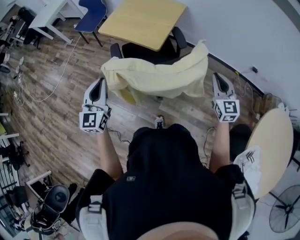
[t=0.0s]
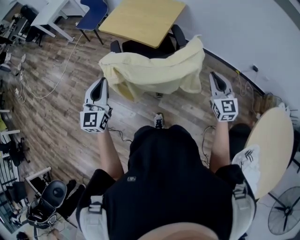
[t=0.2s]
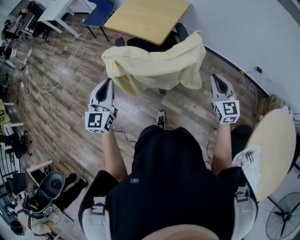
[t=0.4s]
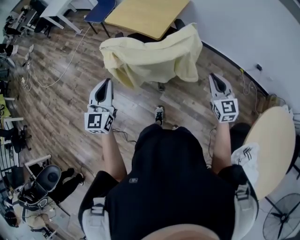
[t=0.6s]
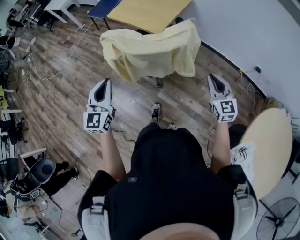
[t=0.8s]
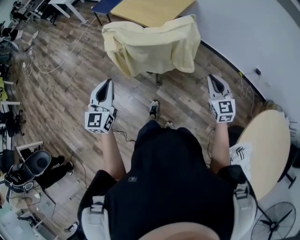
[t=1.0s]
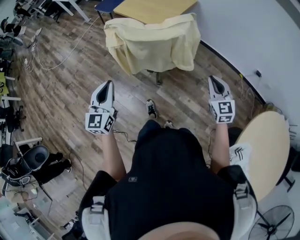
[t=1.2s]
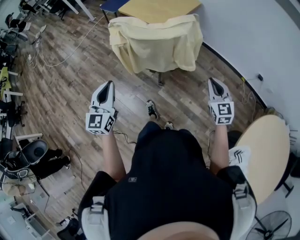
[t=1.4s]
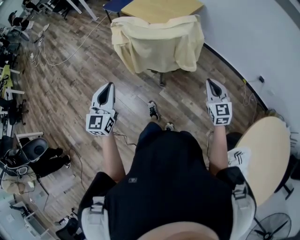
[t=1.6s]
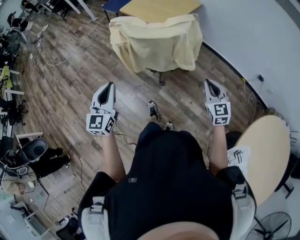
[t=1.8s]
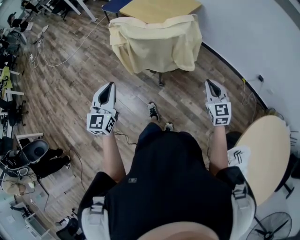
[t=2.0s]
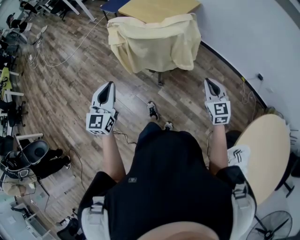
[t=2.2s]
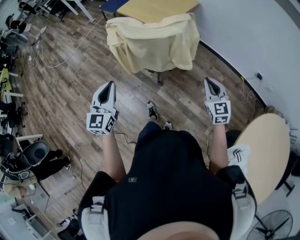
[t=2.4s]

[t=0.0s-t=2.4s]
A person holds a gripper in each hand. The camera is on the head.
t=0.0s to t=1.2s: The left gripper moves backward, roughly 25 cm; the right gripper goes approximately 15 cm backward.
t=1.2s to t=2.4s: There are only small adjustments of the grippers.

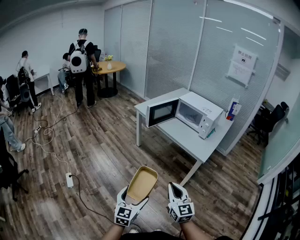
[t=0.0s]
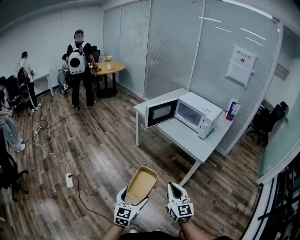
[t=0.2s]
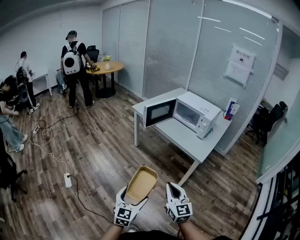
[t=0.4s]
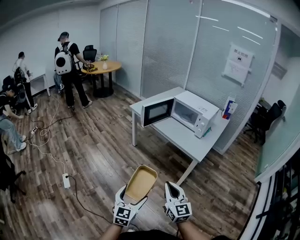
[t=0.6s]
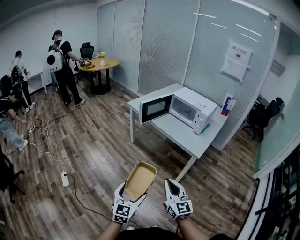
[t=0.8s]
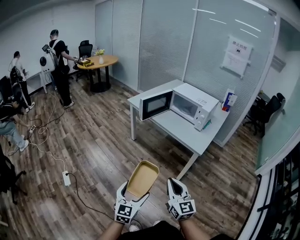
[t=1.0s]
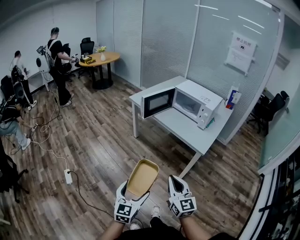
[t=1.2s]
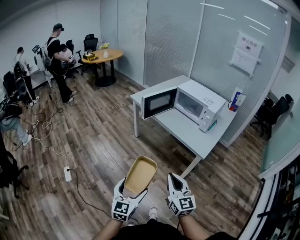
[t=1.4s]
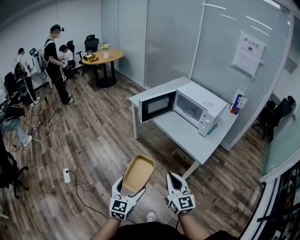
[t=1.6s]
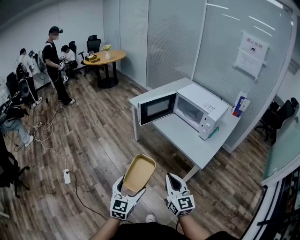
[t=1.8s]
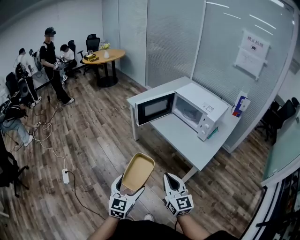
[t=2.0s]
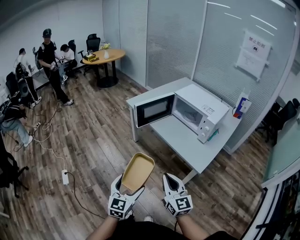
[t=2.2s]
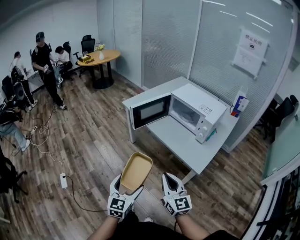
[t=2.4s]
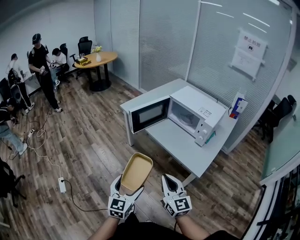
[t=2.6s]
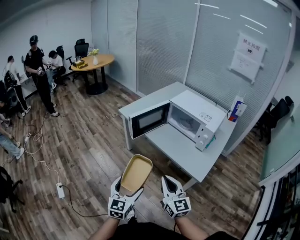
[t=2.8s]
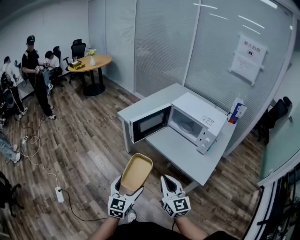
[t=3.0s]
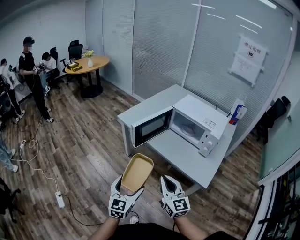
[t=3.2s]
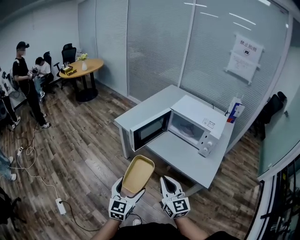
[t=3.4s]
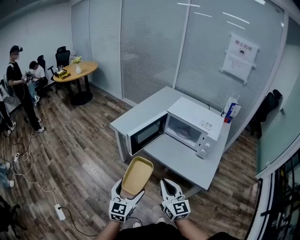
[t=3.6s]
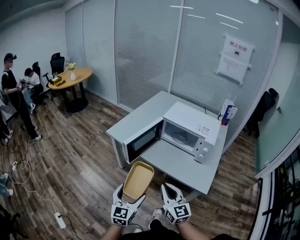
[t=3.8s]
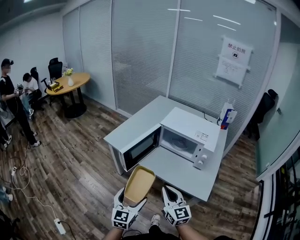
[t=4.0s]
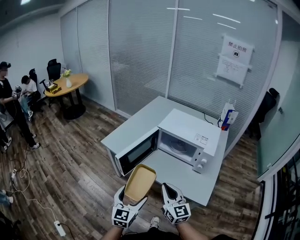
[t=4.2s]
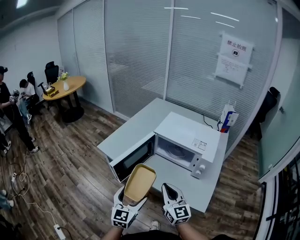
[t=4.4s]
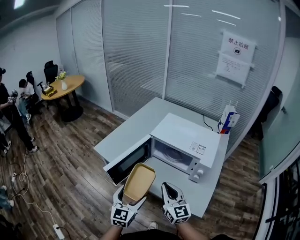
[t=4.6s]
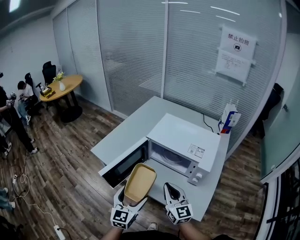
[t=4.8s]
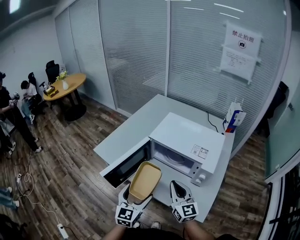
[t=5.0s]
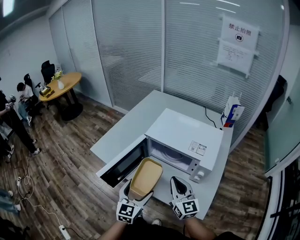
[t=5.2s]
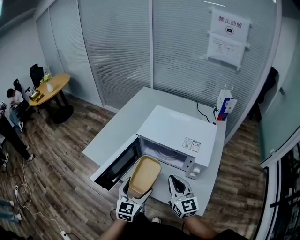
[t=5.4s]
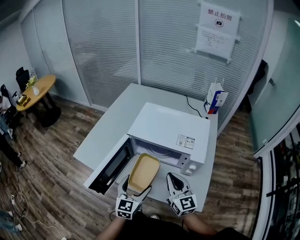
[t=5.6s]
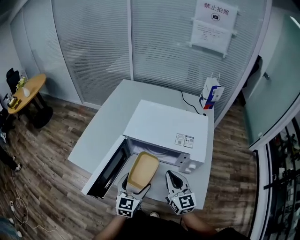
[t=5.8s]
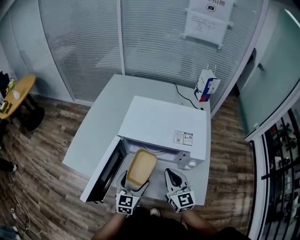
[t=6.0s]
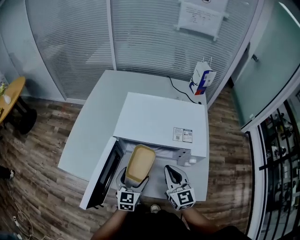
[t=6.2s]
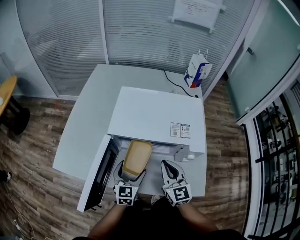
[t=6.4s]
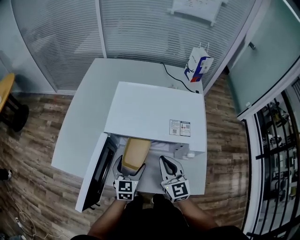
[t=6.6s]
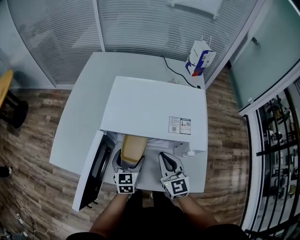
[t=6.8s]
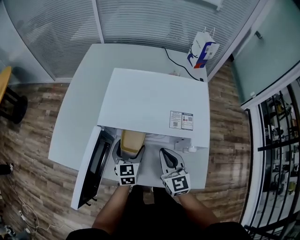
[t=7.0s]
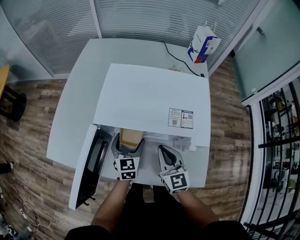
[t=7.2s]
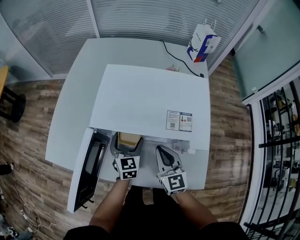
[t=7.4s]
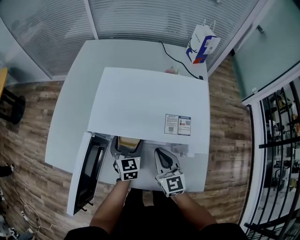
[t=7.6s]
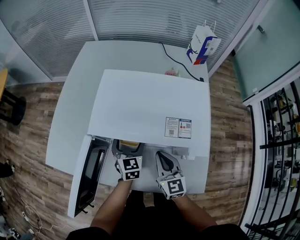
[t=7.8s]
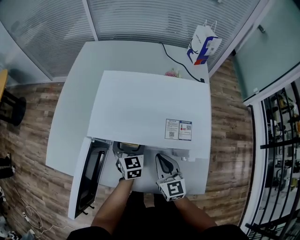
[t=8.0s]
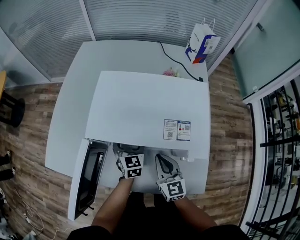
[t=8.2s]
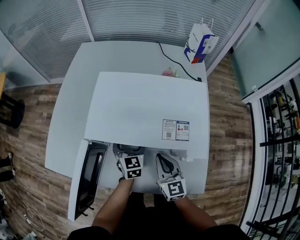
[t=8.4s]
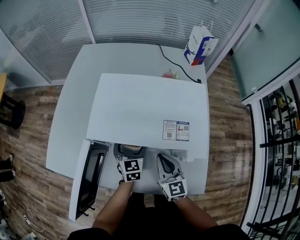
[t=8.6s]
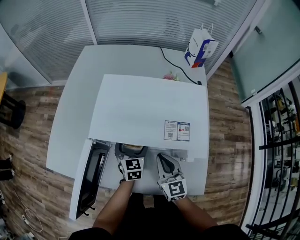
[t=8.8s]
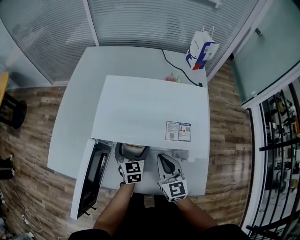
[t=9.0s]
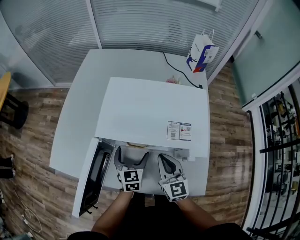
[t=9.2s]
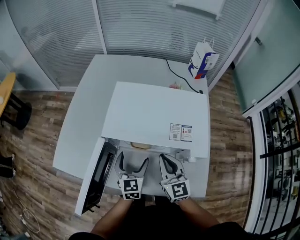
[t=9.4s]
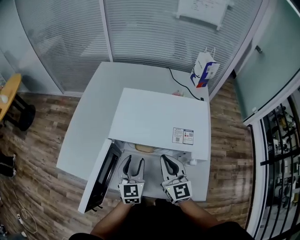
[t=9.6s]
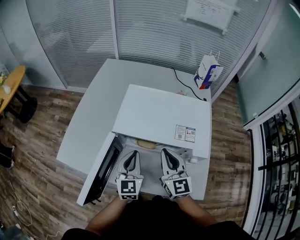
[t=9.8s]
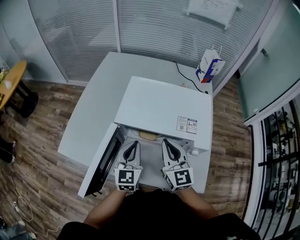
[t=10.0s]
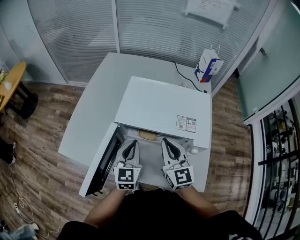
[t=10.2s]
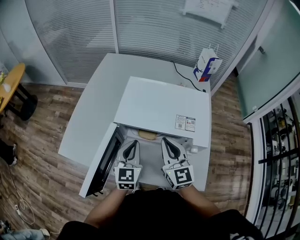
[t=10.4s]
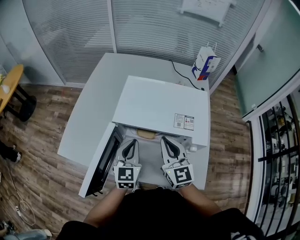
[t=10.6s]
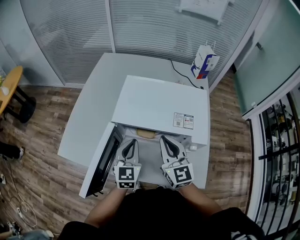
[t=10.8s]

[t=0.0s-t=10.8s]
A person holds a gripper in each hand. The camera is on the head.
t=0.0s to t=1.6s: The right gripper is displaced forward and to the right by some 15 cm. Meanwhile the left gripper travels forward by approximately 10 cm.
t=1.6s to t=3.0s: The two grippers go roughly 20 cm forward.
t=3.0s to t=4.6s: Both grippers travel together forward, about 25 cm.
t=4.6s to t=6.2s: The left gripper shifts about 25 cm forward and downward, and turns by roughly 20 degrees. The right gripper travels forward, to the right and downward by about 15 cm, and changes its angle by roughly 20 degrees.
t=6.2s to t=7.8s: The left gripper shifts roughly 15 cm forward. The right gripper goes some 10 cm downward and forward.
t=7.8s to t=9.2s: There are only small adjustments of the grippers.
t=9.2s to t=10.8s: Both grippers move upward, approximately 10 cm. The left gripper closes.

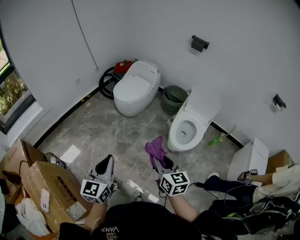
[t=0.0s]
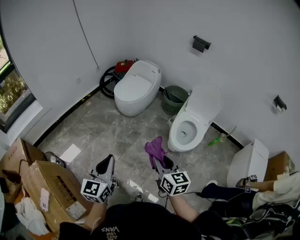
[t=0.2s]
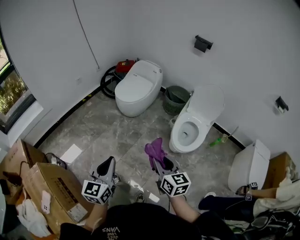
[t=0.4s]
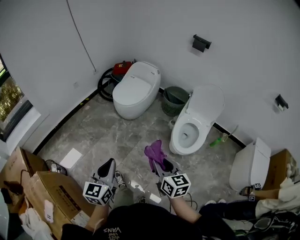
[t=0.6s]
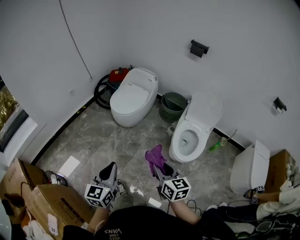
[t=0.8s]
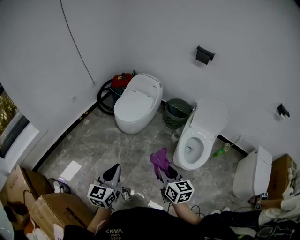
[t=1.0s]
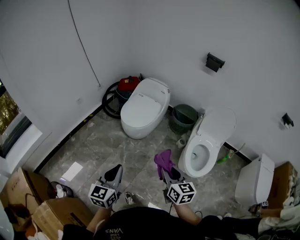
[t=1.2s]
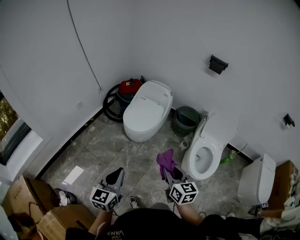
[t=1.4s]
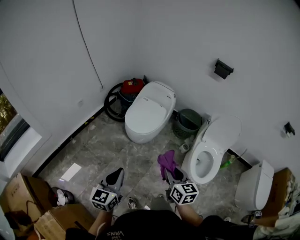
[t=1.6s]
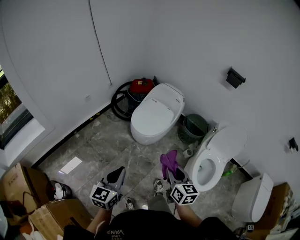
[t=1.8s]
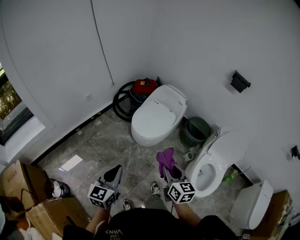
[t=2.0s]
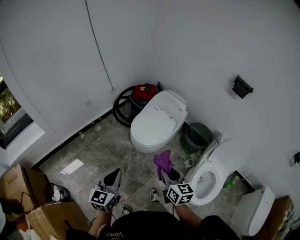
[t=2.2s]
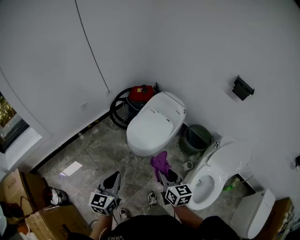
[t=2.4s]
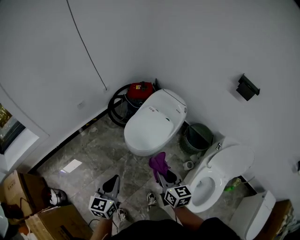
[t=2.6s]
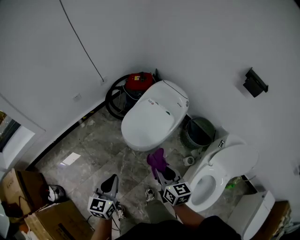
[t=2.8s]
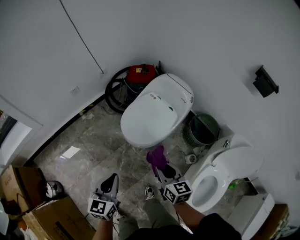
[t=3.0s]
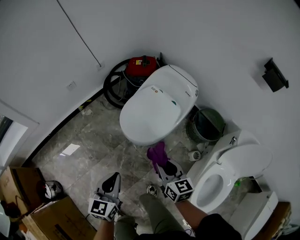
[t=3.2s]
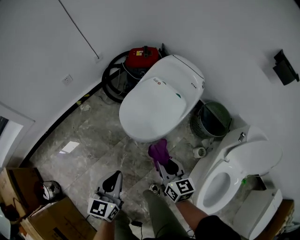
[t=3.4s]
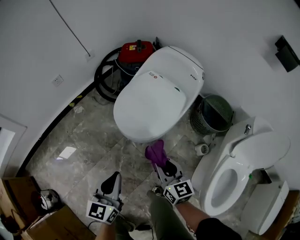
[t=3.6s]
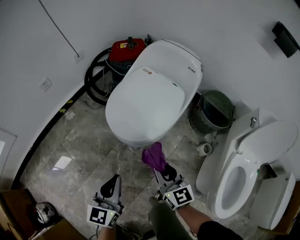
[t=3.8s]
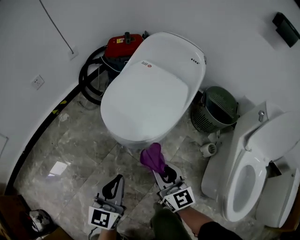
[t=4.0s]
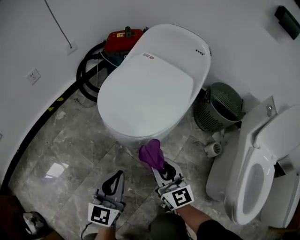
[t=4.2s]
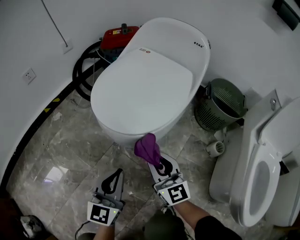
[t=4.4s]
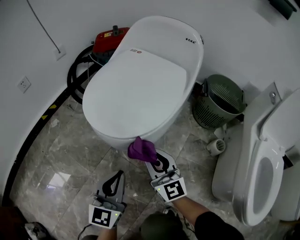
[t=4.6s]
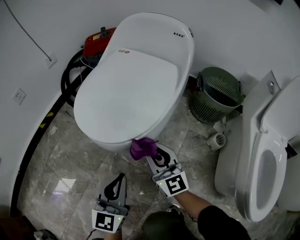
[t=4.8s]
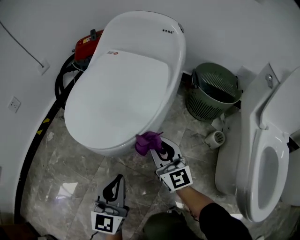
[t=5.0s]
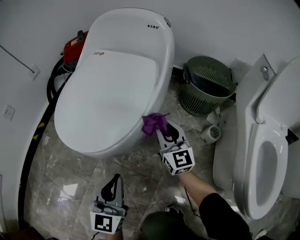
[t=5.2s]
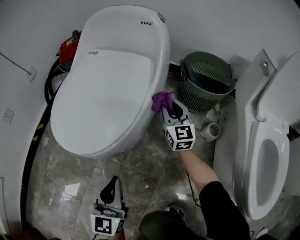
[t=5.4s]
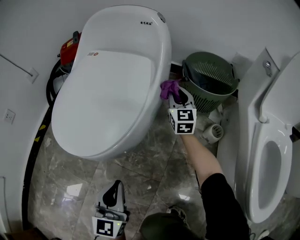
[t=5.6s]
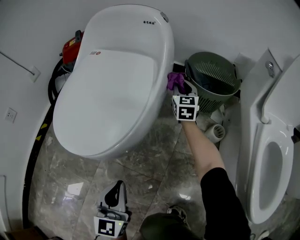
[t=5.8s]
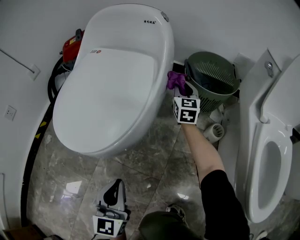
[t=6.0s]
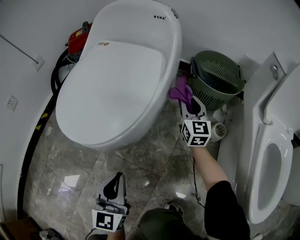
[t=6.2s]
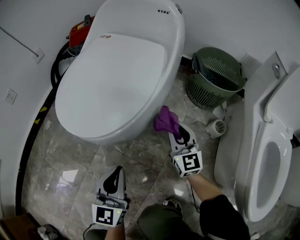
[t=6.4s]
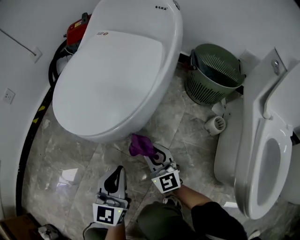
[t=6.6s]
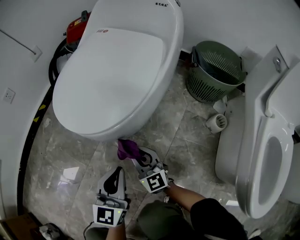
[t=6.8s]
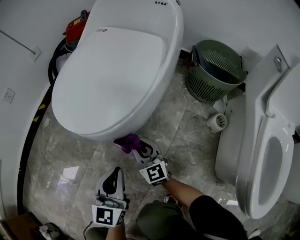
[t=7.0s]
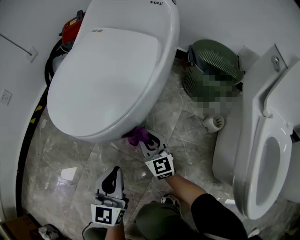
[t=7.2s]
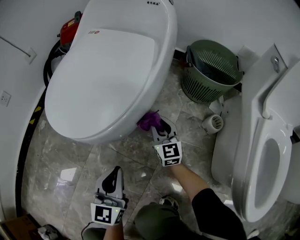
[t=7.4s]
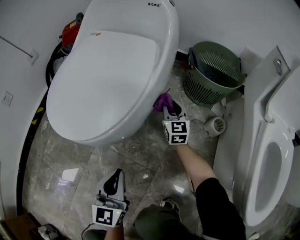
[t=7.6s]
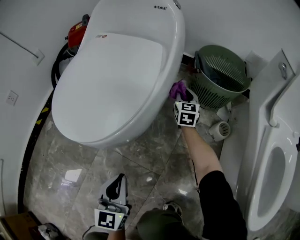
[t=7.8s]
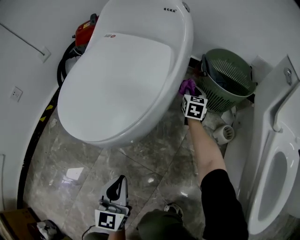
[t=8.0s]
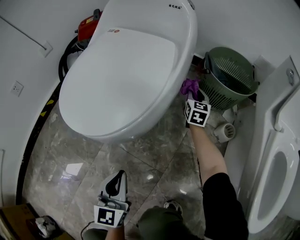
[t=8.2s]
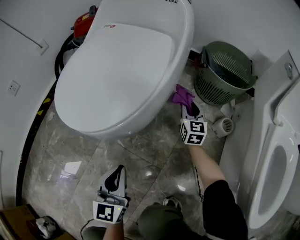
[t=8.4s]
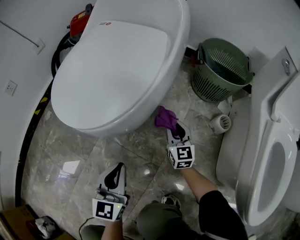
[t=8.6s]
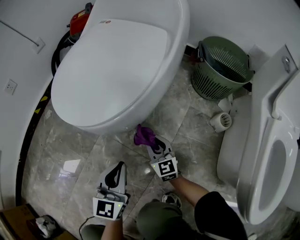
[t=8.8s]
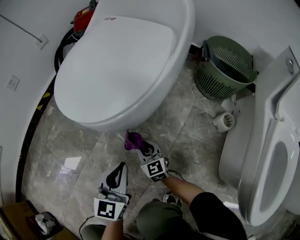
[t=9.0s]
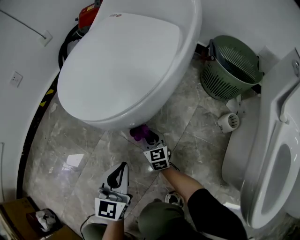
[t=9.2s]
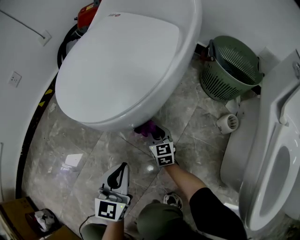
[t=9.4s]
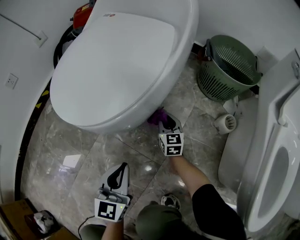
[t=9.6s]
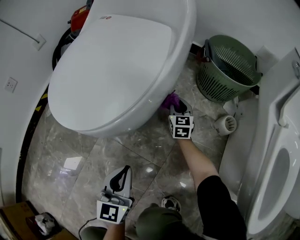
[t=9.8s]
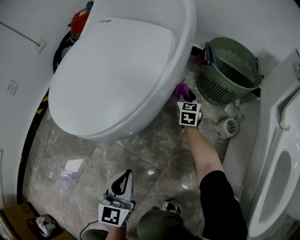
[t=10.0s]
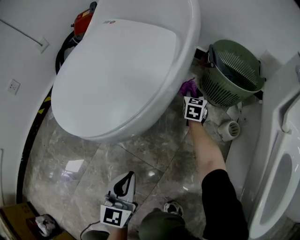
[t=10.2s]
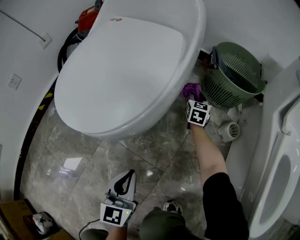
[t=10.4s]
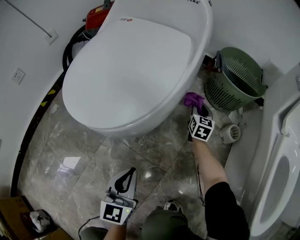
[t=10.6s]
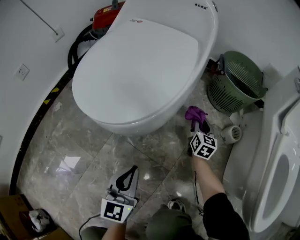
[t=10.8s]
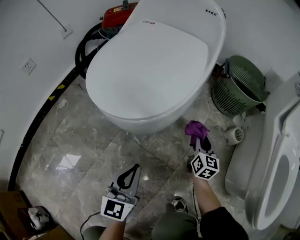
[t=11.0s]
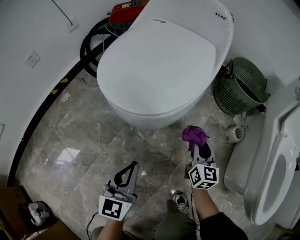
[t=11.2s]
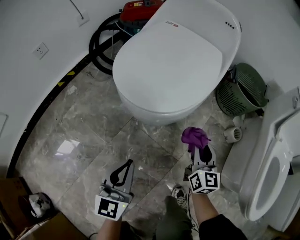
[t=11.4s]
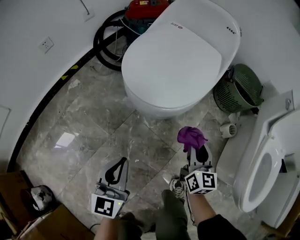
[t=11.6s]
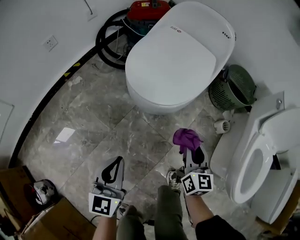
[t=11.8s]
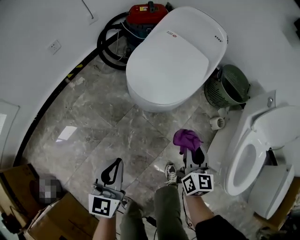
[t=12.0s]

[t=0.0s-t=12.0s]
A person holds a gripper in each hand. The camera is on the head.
t=0.0s to t=1.6s: The grippers both shift forward and to the left by about 35 cm.
t=1.6s to t=3.0s: The left gripper travels forward, downward and to the right by approximately 25 cm. The right gripper goes roughly 30 cm forward and downward, and swivels about 20 degrees.
t=3.0s to t=4.4s: The grippers both shift downward by some 40 cm. The left gripper changes its angle by roughly 20 degrees. The right gripper changes its angle by about 30 degrees.
t=4.4s to t=6.0s: The right gripper moves forward and to the right, about 40 cm, and rotates some 40 degrees, while the left gripper is displaced to the right by about 10 cm.
t=6.0s to t=7.6s: The right gripper travels downward and to the left by roughly 10 cm, and moves roughly 30 cm backward and comes back.
t=7.6s to t=9.0s: The right gripper is displaced backward, to the left and downward by approximately 30 cm, and rotates roughly 30 degrees.
t=9.0s to t=10.4s: The right gripper travels forward and to the right by approximately 40 cm, and rotates roughly 40 degrees.
t=10.4s to t=12.0s: The left gripper goes about 35 cm upward, to the left and backward. The right gripper moves backward, upward and to the left, roughly 60 cm, and turns by about 20 degrees.
